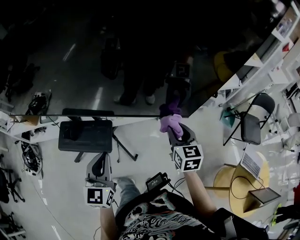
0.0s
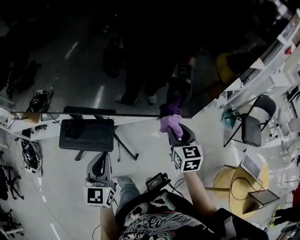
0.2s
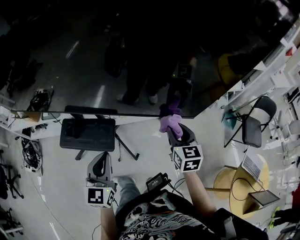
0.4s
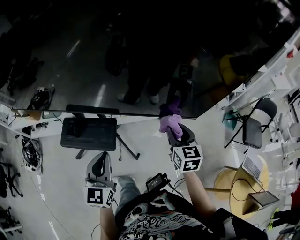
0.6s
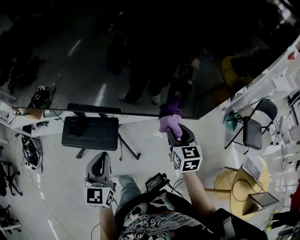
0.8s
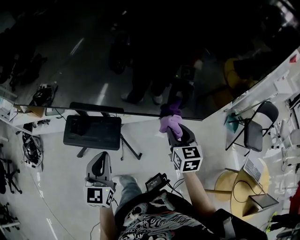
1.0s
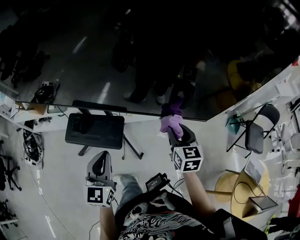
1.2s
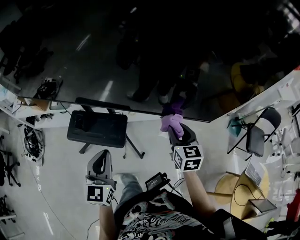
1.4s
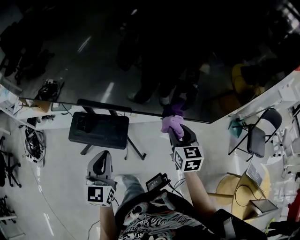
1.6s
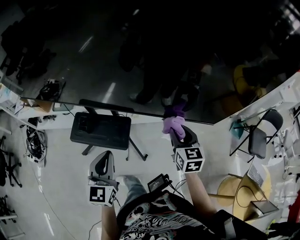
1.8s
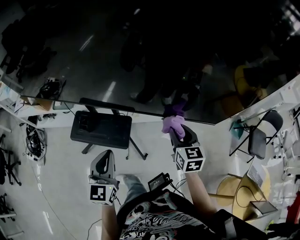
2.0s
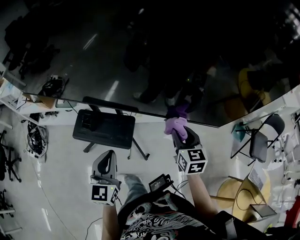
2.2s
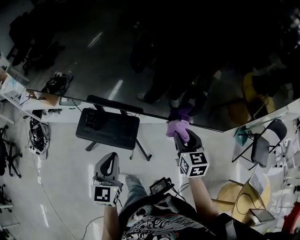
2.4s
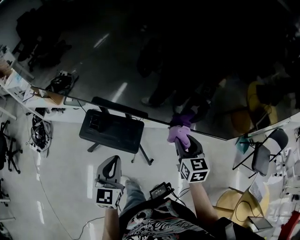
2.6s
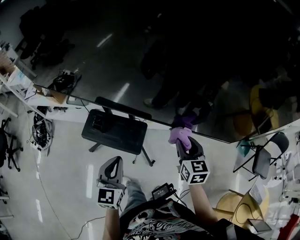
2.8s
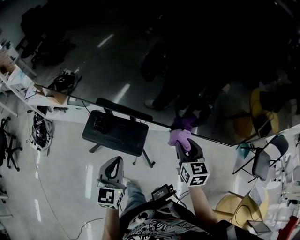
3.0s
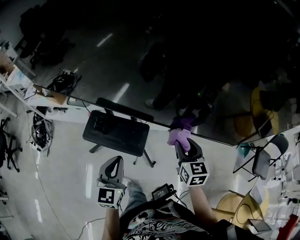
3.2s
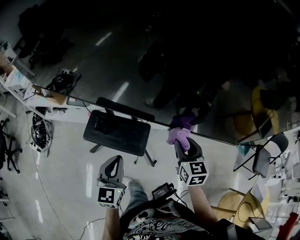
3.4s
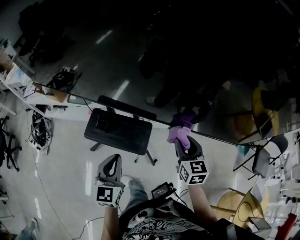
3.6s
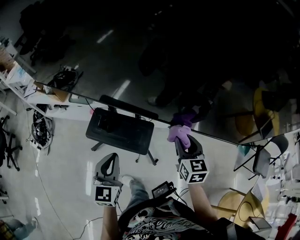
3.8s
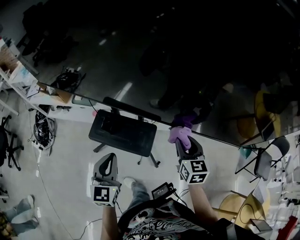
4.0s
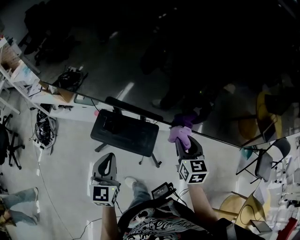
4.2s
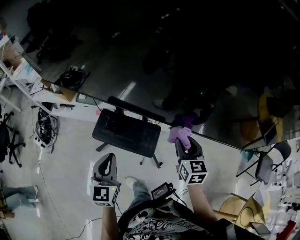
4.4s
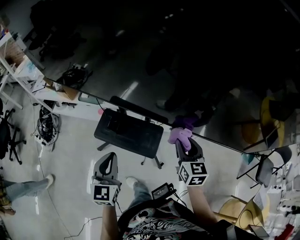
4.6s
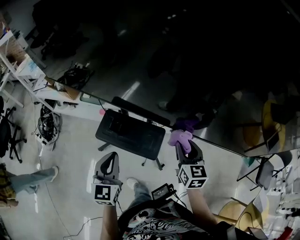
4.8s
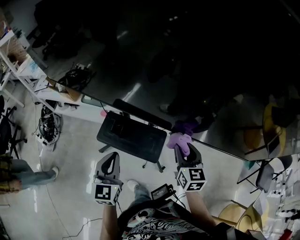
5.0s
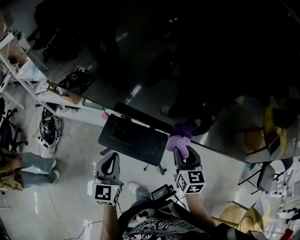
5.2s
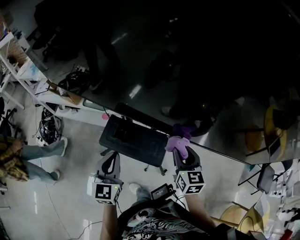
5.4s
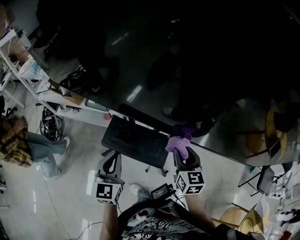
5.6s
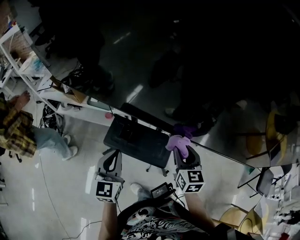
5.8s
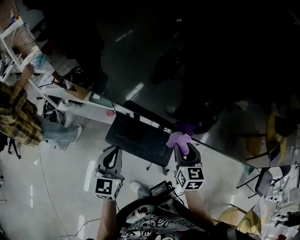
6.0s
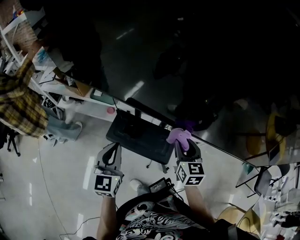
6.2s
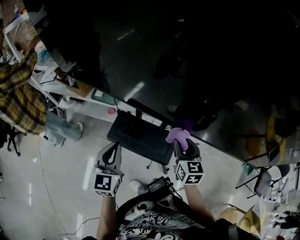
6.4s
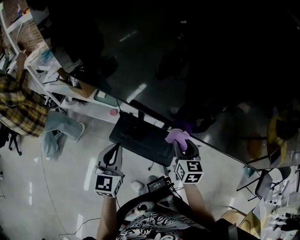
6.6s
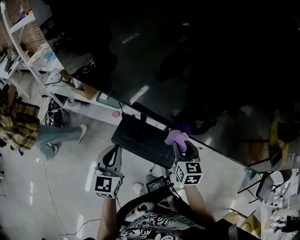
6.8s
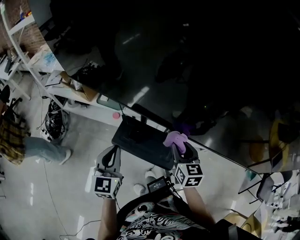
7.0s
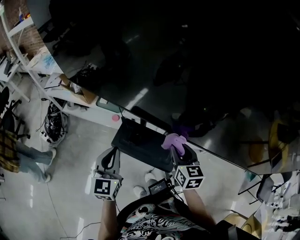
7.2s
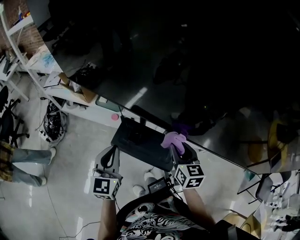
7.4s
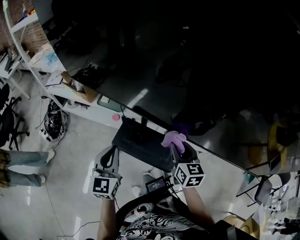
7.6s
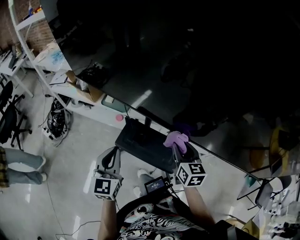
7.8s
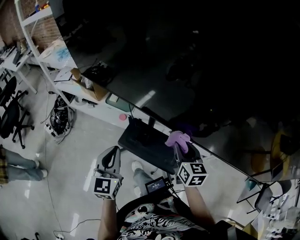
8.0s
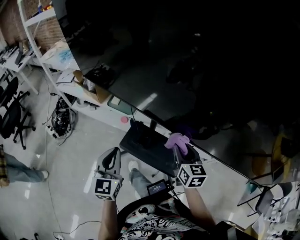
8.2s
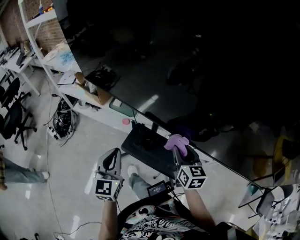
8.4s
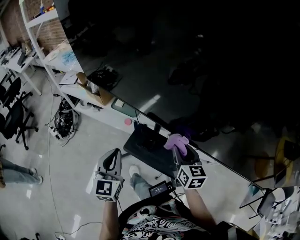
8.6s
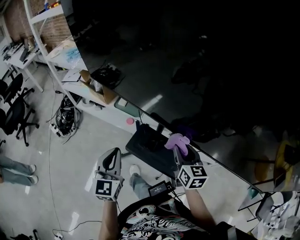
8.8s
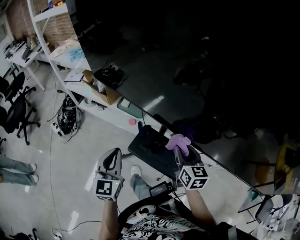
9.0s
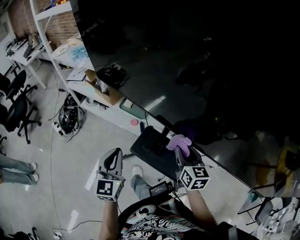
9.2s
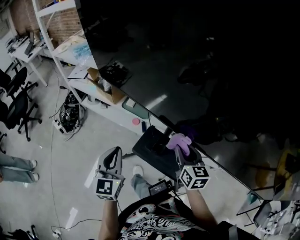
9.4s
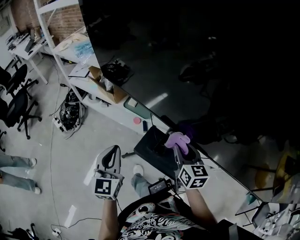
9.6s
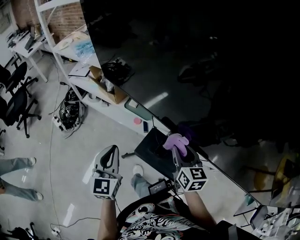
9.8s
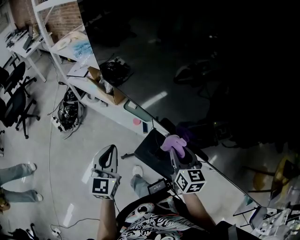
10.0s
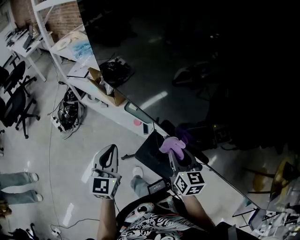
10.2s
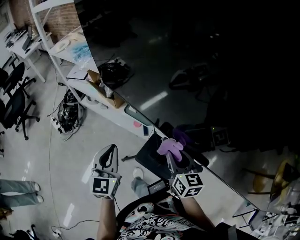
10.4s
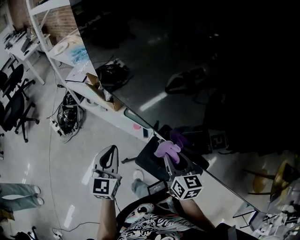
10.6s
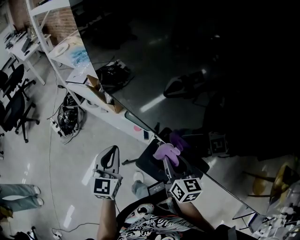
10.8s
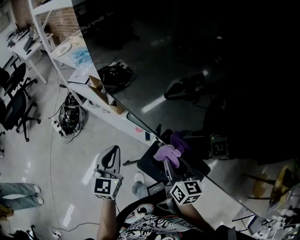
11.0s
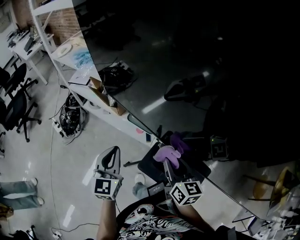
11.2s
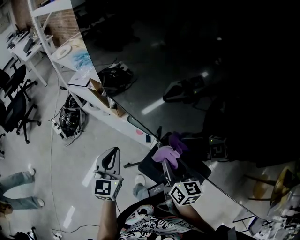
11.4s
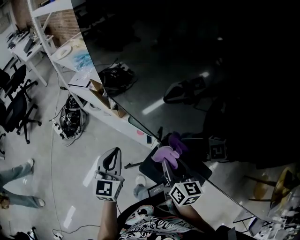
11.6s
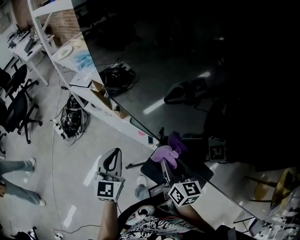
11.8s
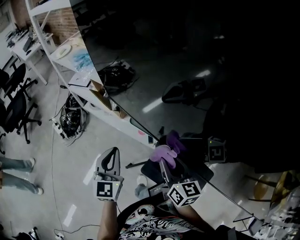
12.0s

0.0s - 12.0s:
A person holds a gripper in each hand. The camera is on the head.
0.0s - 1.6s: The grippers both shift to the left by approximately 10 cm.
1.6s - 3.0s: The grippers both shift to the left by some 5 cm.
3.0s - 4.4s: Both grippers move to the left, roughly 10 cm.
4.4s - 6.0s: Both grippers move to the left and forward, roughly 15 cm.
6.0s - 7.6s: The grippers both shift to the left by some 5 cm.
7.6s - 9.0s: The left gripper goes roughly 10 cm to the left; the right gripper moves to the left and forward, approximately 10 cm.
9.0s - 10.4s: The right gripper travels to the left and forward by some 15 cm. Meanwhile the left gripper moves forward and to the left, roughly 15 cm.
10.4s - 12.0s: The left gripper heads forward, covering some 10 cm. Meanwhile the right gripper goes approximately 10 cm forward and to the left.

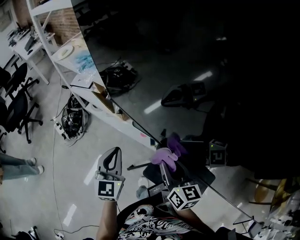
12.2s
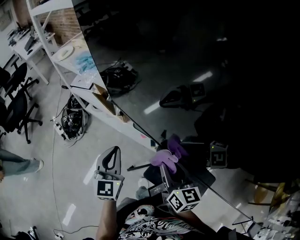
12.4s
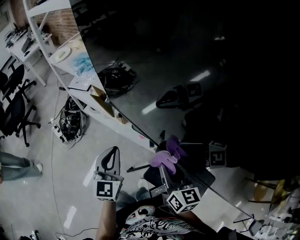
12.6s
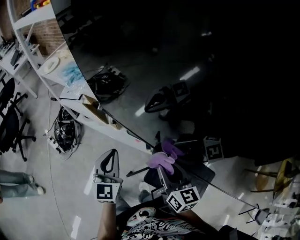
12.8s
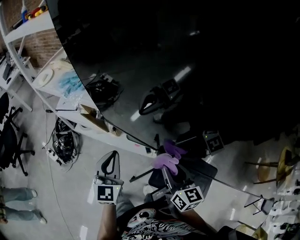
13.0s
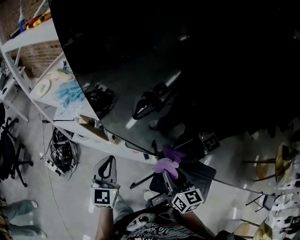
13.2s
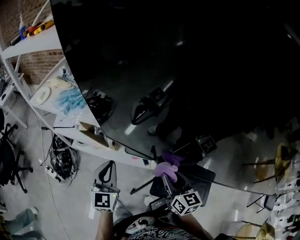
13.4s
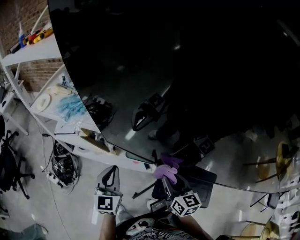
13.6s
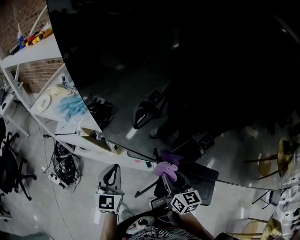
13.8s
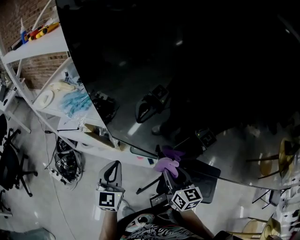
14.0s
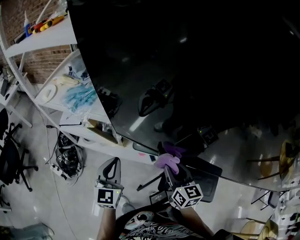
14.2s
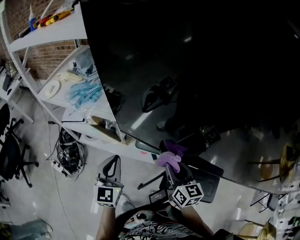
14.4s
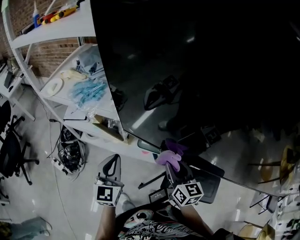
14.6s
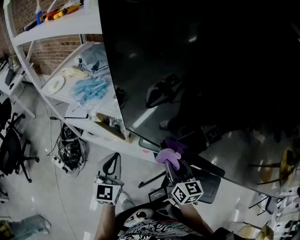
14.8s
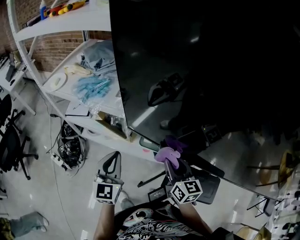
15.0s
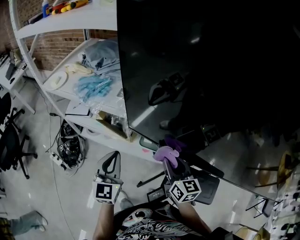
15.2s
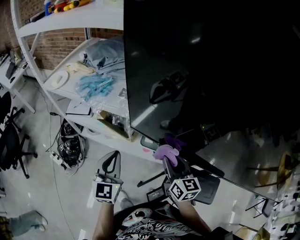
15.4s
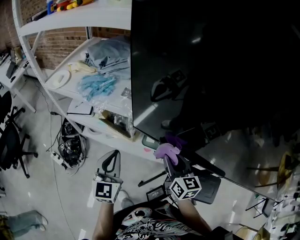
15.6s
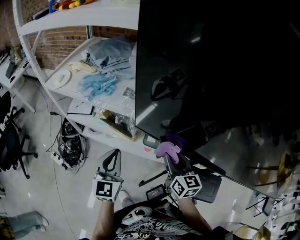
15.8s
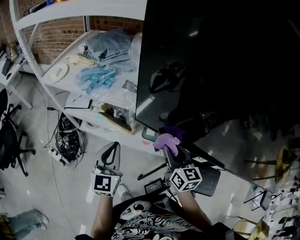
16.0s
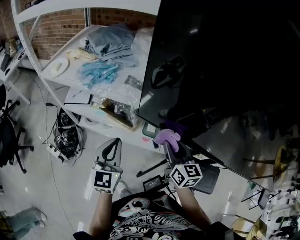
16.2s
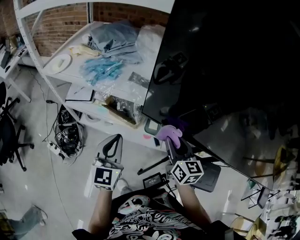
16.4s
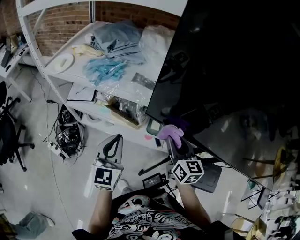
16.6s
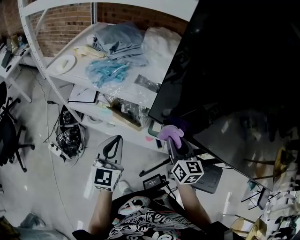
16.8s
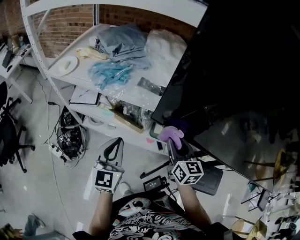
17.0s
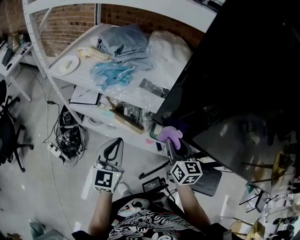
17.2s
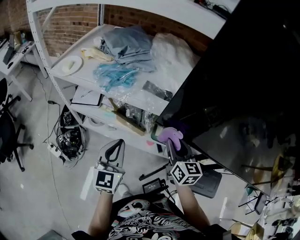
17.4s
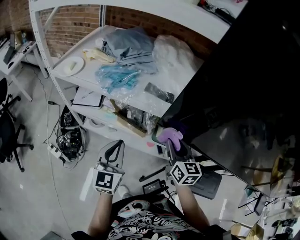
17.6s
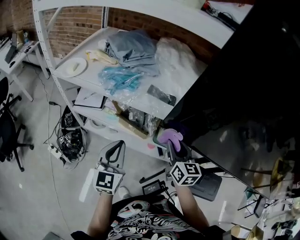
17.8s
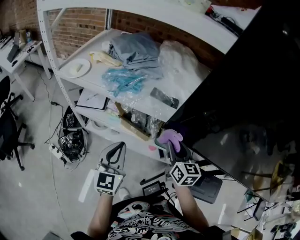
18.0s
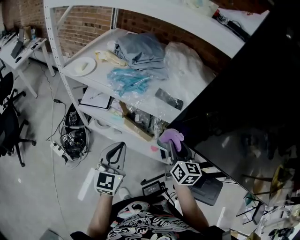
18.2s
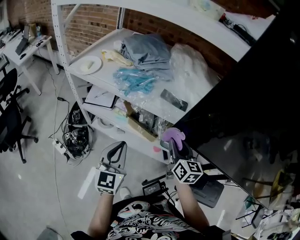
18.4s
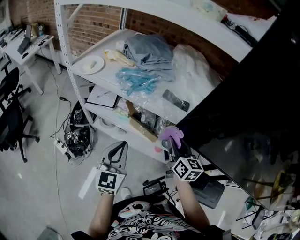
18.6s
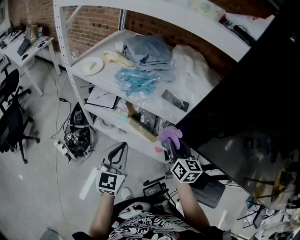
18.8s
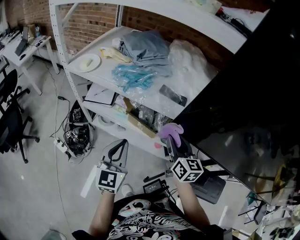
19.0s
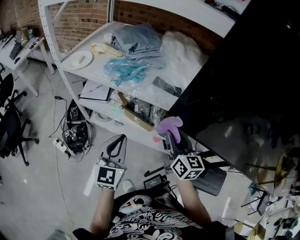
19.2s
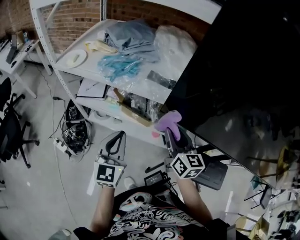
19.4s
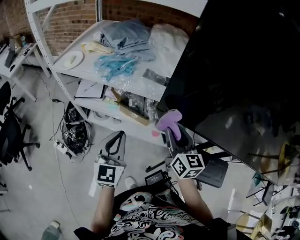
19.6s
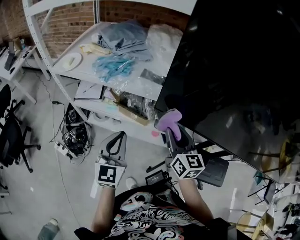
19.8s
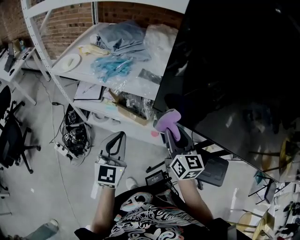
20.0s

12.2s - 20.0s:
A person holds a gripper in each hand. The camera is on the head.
12.2s - 13.8s: The left gripper is displaced forward and to the left by roughly 10 cm, while the right gripper changes place by about 5 cm.
13.8s - 15.4s: The left gripper is displaced to the left by some 10 cm, while the right gripper goes approximately 10 cm to the left and forward.
15.4s - 16.8s: The two grippers go some 5 cm to the left.
16.8s - 18.4s: The two grippers go roughly 10 cm to the left.
18.4s - 20.0s: The right gripper heads backward, covering some 5 cm. Meanwhile the left gripper goes roughly 5 cm to the right.

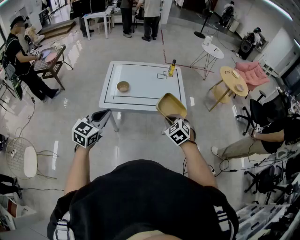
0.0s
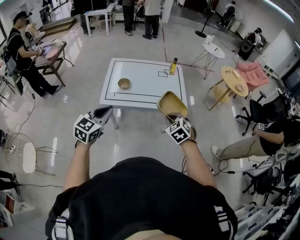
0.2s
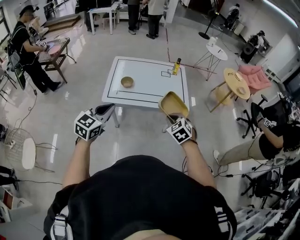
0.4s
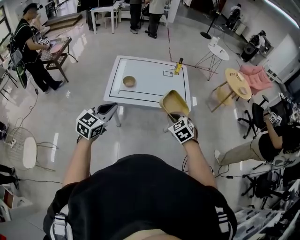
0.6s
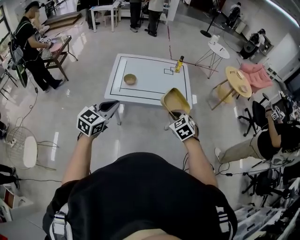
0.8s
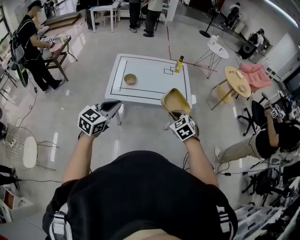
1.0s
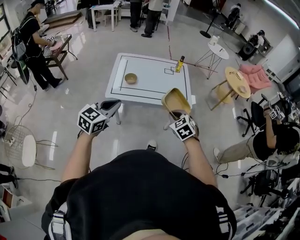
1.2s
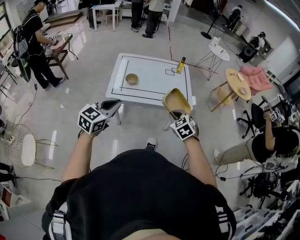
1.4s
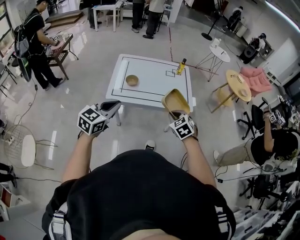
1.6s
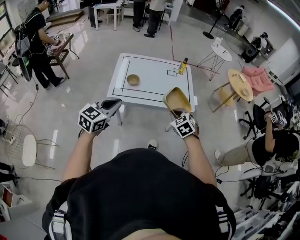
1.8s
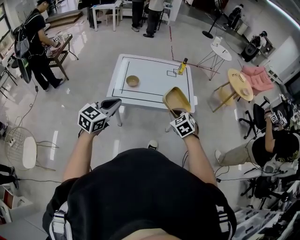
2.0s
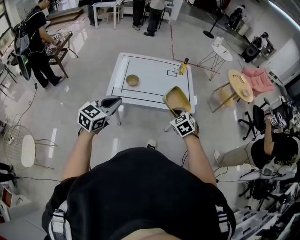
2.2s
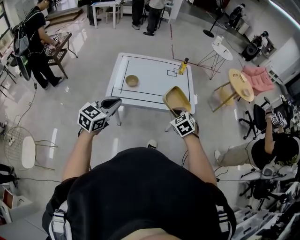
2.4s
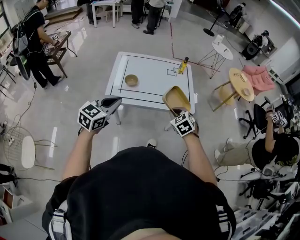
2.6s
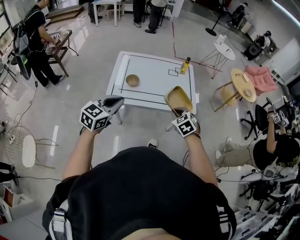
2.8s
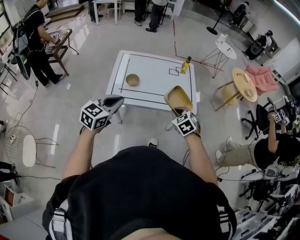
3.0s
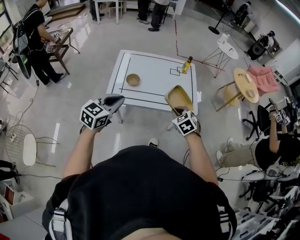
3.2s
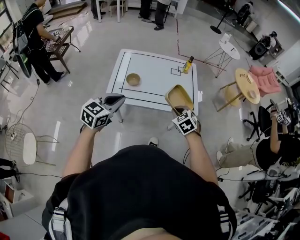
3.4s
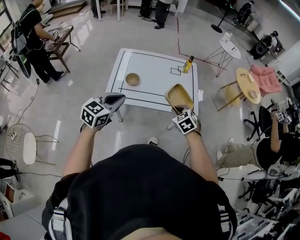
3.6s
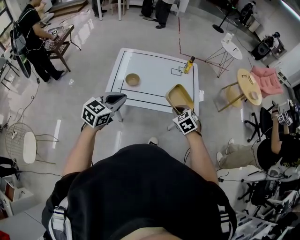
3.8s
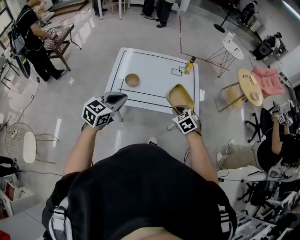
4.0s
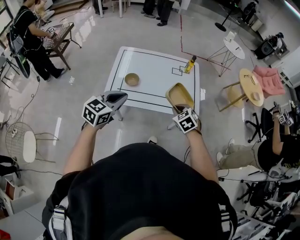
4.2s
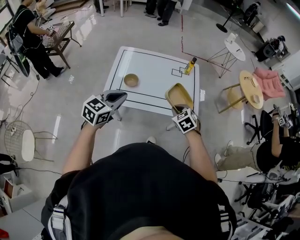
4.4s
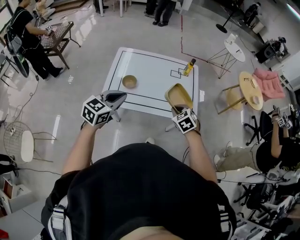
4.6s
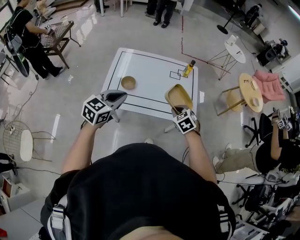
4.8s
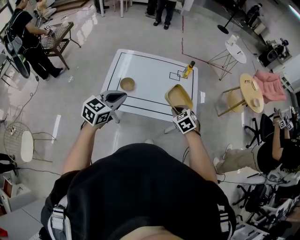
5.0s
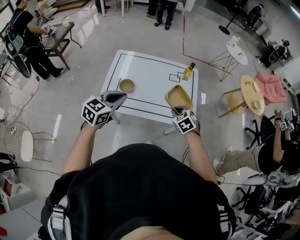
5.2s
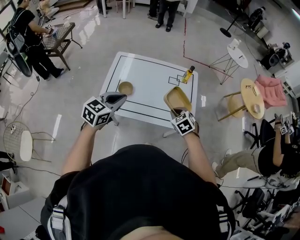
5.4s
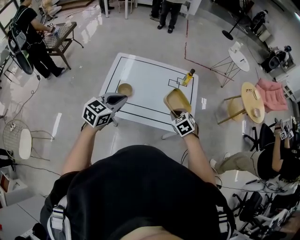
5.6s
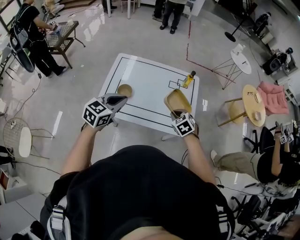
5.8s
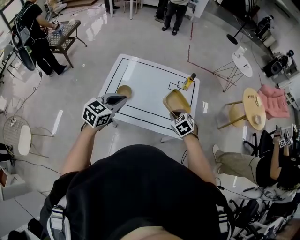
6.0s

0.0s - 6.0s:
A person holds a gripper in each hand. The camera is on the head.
0.0s - 1.6s: The grippers make only small movements.
1.6s - 3.0s: Both grippers move forward, roughly 10 cm.
3.0s - 4.4s: The two grippers go roughly 10 cm forward.
4.4s - 6.0s: Both grippers move forward, some 10 cm.
